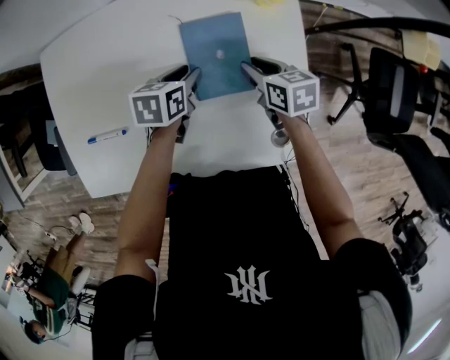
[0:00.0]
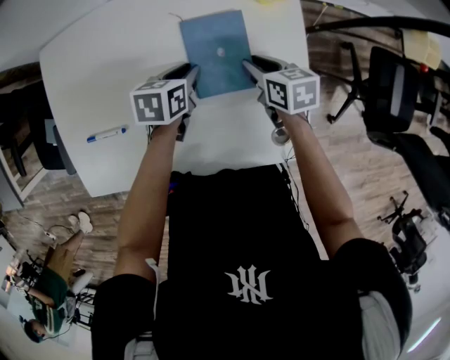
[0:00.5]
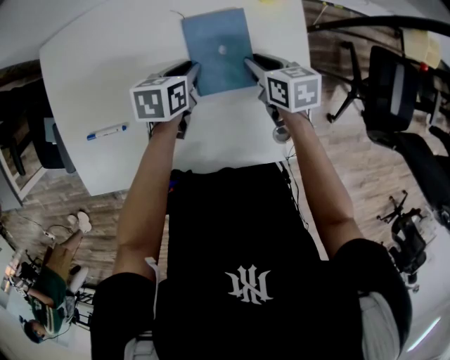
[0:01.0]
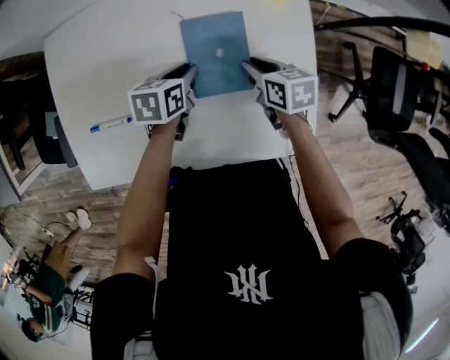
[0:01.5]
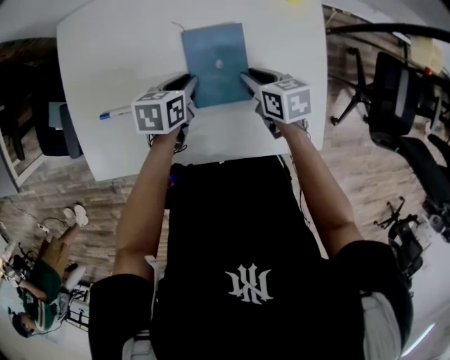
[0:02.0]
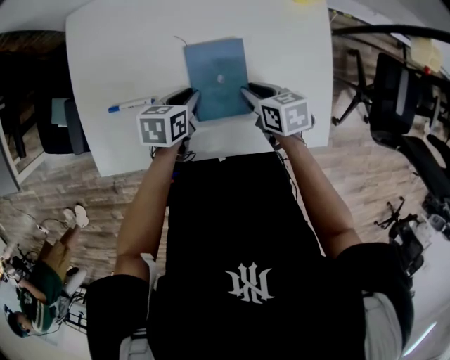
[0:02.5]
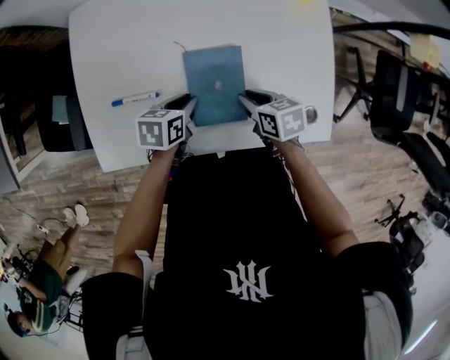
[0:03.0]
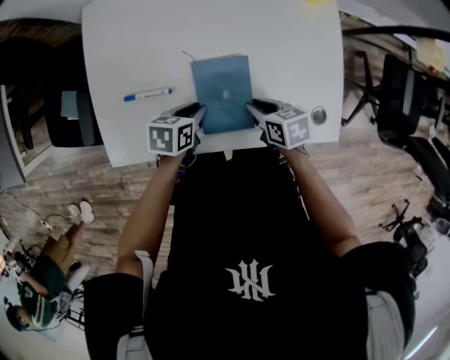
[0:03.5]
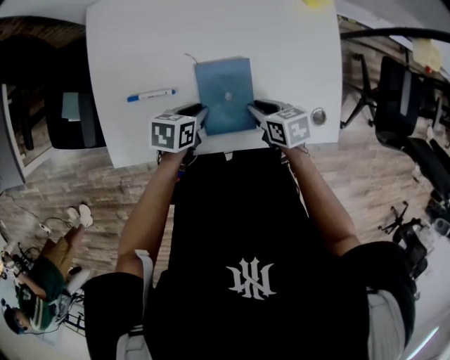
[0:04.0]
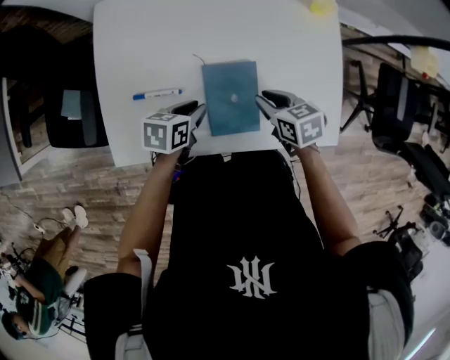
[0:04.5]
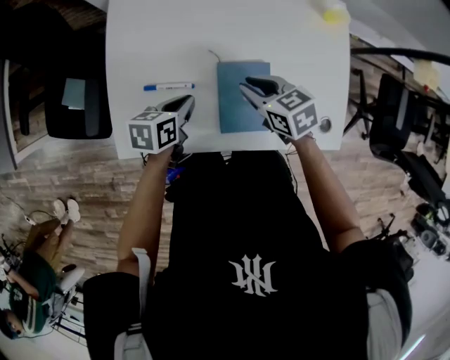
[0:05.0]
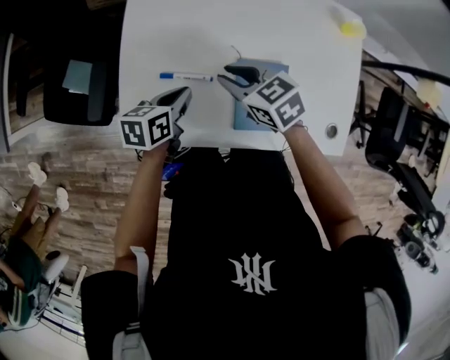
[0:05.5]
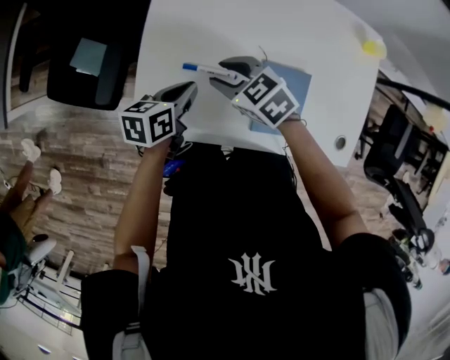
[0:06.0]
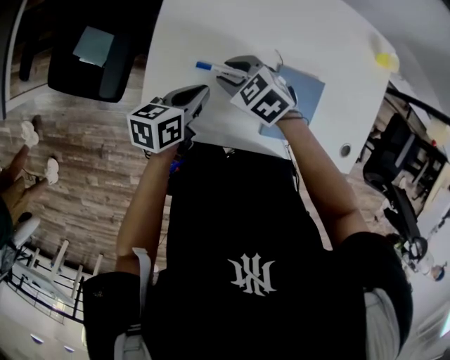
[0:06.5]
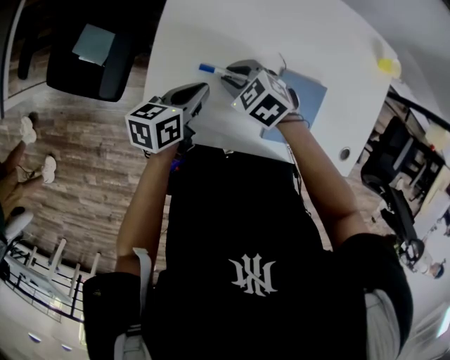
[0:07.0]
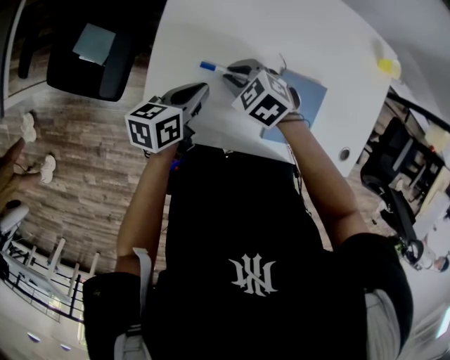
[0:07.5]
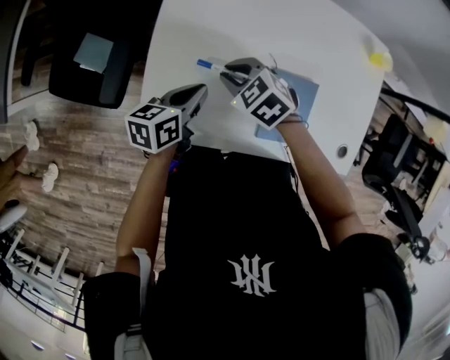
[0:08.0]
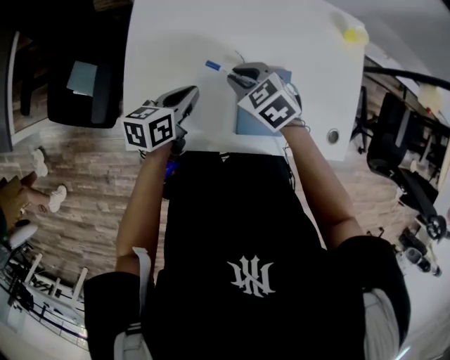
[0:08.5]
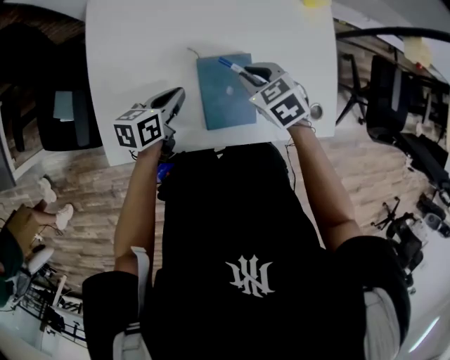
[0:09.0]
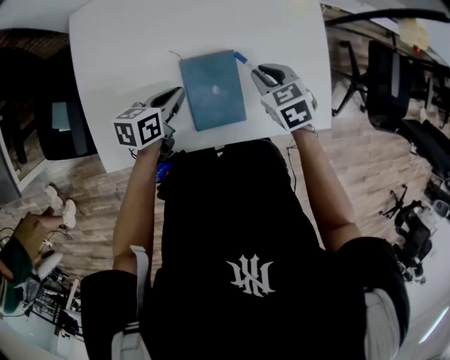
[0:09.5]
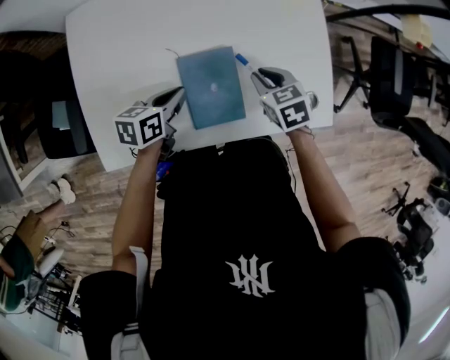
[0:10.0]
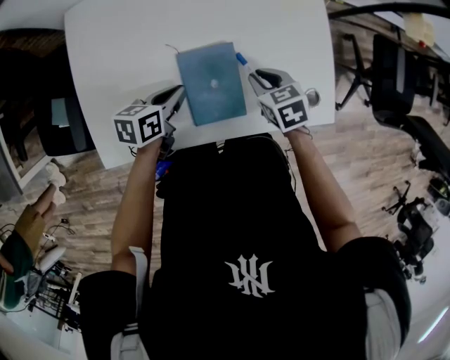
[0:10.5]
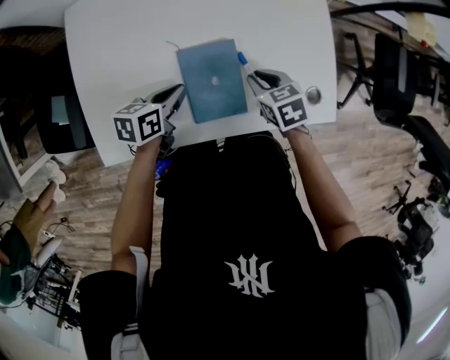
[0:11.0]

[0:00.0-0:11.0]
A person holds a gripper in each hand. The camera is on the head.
0:00.0 to 0:02.0: The grippers both shift to the left and backward by roughly 10 cm.
0:02.0 to 0:03.5: Both grippers travel together backward and to the left, approximately 15 cm.
0:03.5 to 0:05.5: The left gripper goes roughly 15 cm to the left and upward, and rotates some 20 degrees; the right gripper shifts about 25 cm to the left, upward and forward, and turns by roughly 40 degrees.
0:05.5 to 0:07.5: The left gripper heads to the left, covering roughly 5 cm; the right gripper heads to the left and downward, covering roughly 15 cm, and turns by approximately 30 degrees.
0:07.5 to 0:09.0: The left gripper moves to the right, approximately 15 cm, while the right gripper moves to the right, about 25 cm, and rotates some 30 degrees.
0:09.0 to 0:11.0: The right gripper is displaced to the right and downward by approximately 10 cm, and turns by about 20 degrees. Meanwhile the left gripper changes place by some 5 cm.

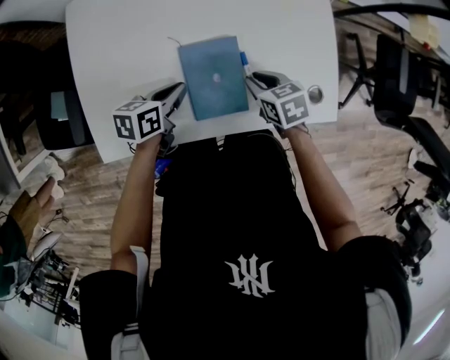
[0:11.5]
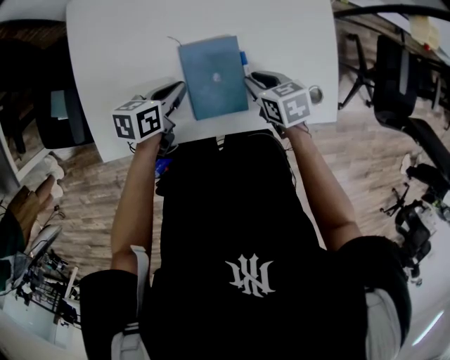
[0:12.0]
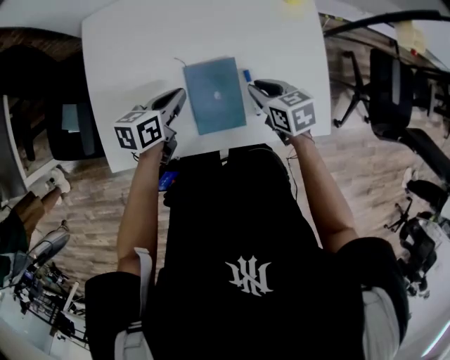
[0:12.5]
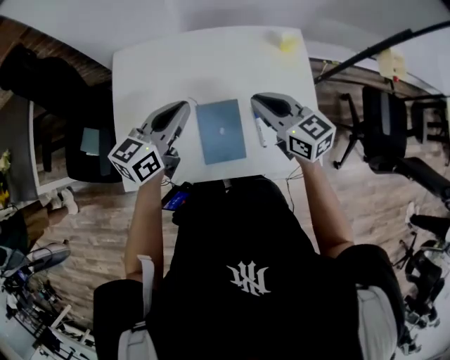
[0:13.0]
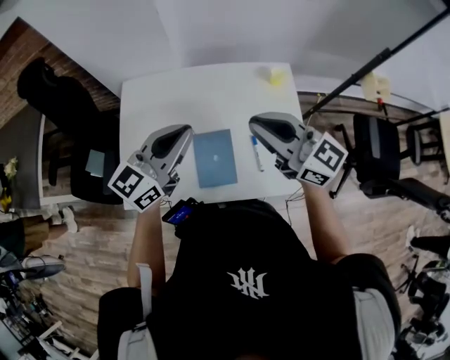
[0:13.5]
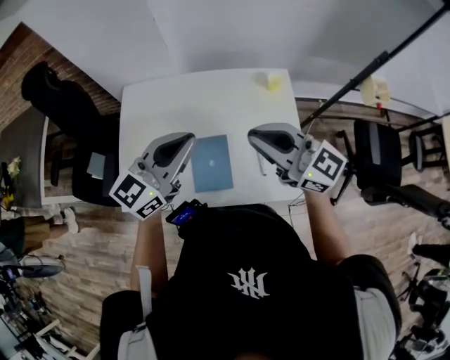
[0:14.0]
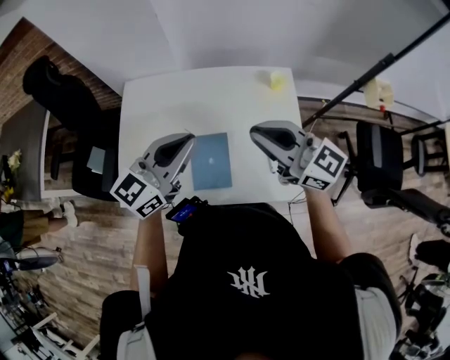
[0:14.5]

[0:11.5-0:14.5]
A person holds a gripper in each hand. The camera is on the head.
0:11.5 to 0:13.0: Both grippers travel together upward, some 25 cm. The right gripper tilts its fingers approximately 40 degrees upward. The left gripper swivels about 40 degrees.
0:13.0 to 0:14.5: The left gripper is displaced upward, to the right and backward by about 15 cm. The right gripper travels upward by some 15 cm, and rotates about 30 degrees.

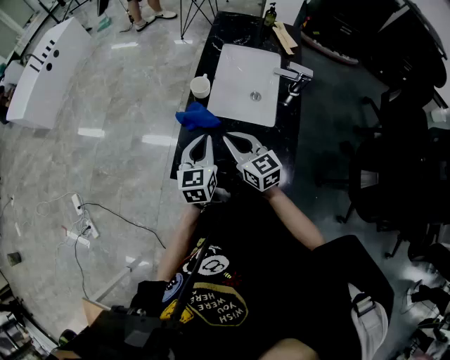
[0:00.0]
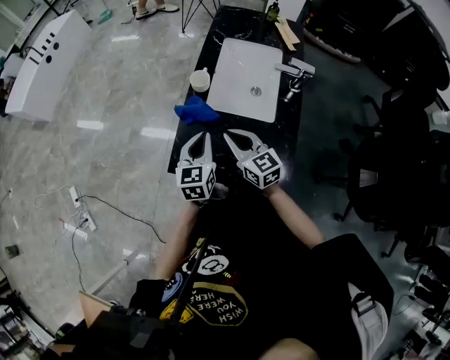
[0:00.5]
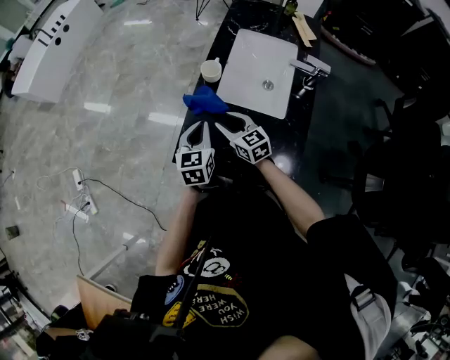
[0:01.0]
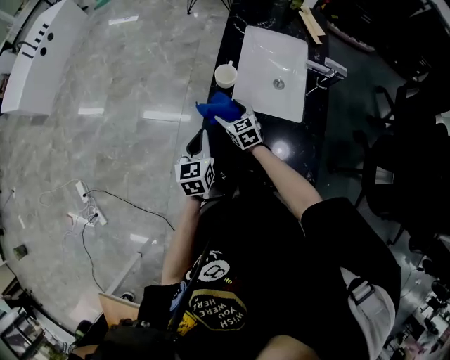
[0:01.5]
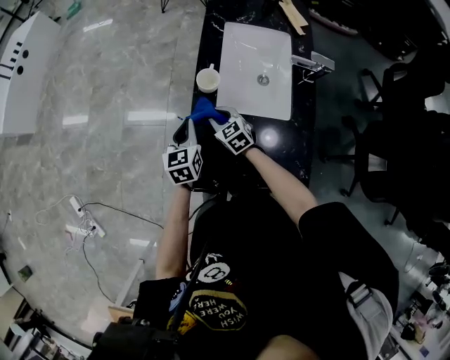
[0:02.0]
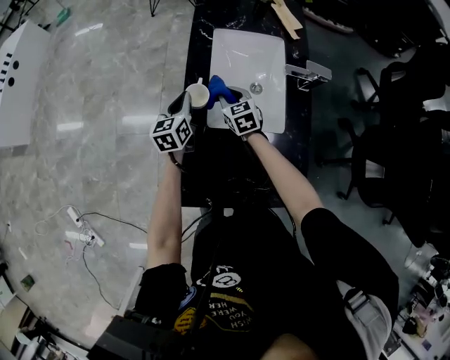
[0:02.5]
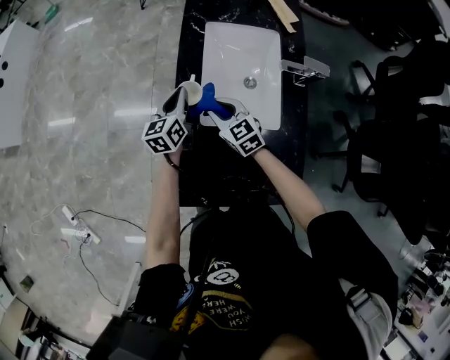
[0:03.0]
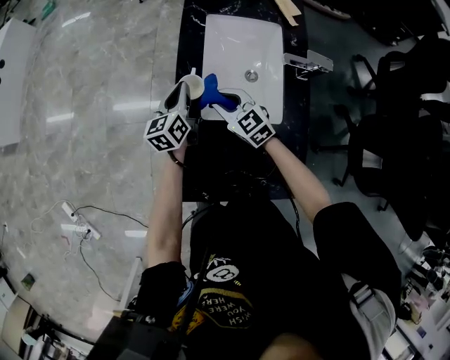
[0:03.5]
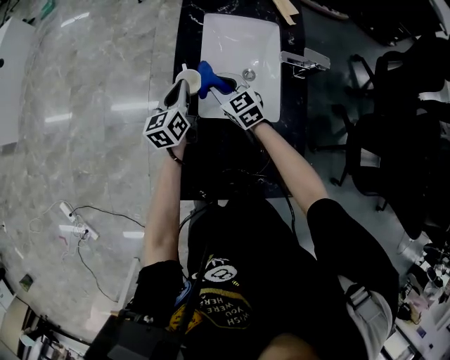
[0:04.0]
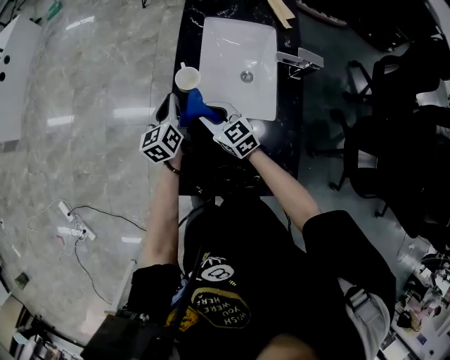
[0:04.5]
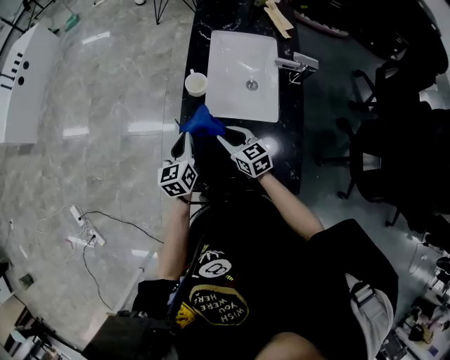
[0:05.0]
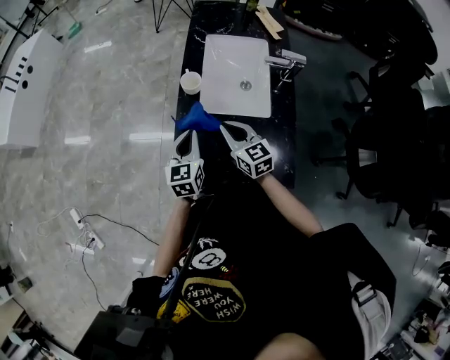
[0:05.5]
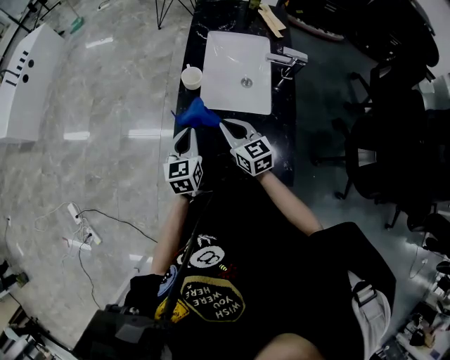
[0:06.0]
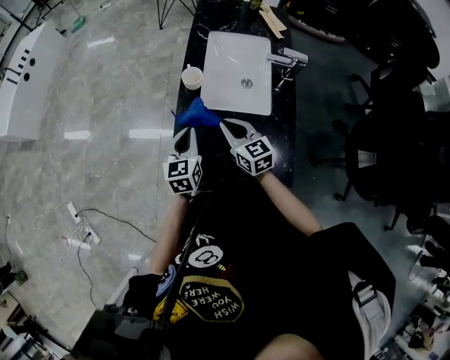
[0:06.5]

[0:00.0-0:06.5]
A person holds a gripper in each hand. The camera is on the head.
0:00.0 to 0:02.0: The right gripper moves downward and forward, approximately 25 cm, swivels about 30 degrees, and opens and closes again; the left gripper is displaced forward, downward and to the left by roughly 20 cm.
0:02.0 to 0:04.5: The left gripper is displaced forward by approximately 10 cm, and rotates some 20 degrees; the right gripper goes forward and backward, about 10 cm each way, reversing 3 times.
0:04.5 to 0:06.5: The left gripper heads backward, covering some 20 cm, and rotates some 20 degrees, while the right gripper is displaced backward and upward by roughly 15 cm.

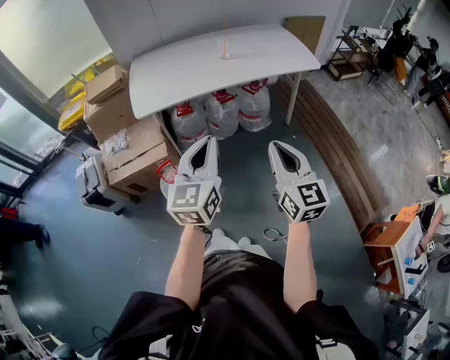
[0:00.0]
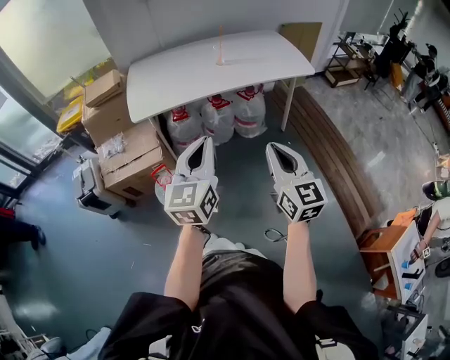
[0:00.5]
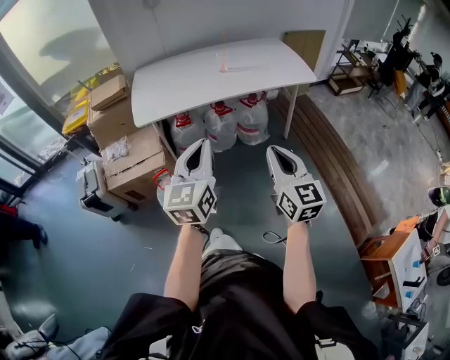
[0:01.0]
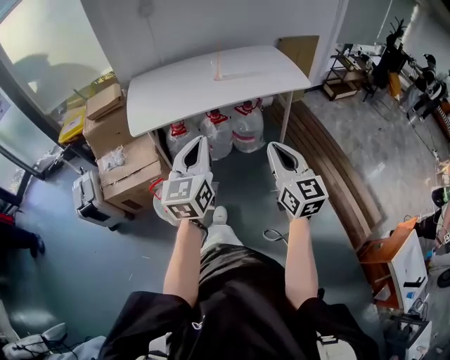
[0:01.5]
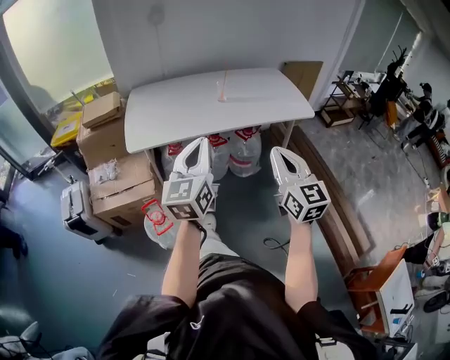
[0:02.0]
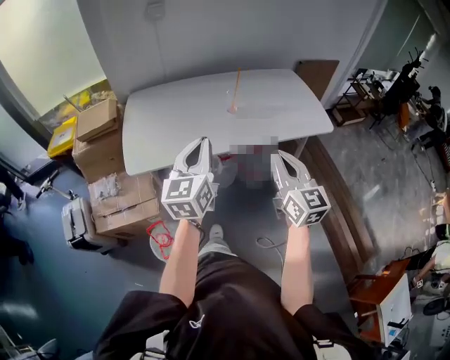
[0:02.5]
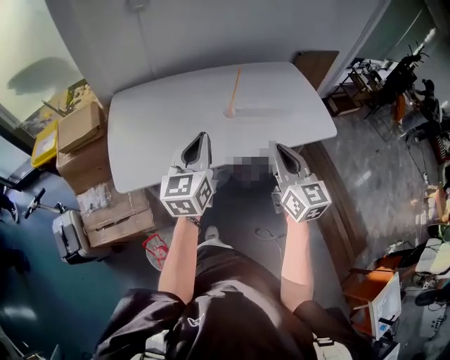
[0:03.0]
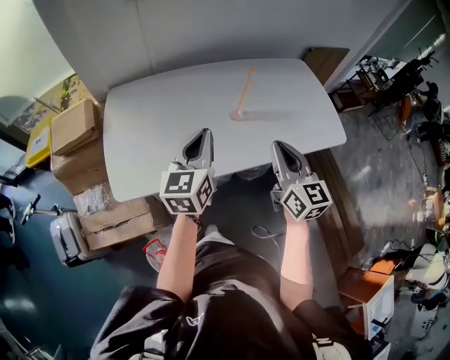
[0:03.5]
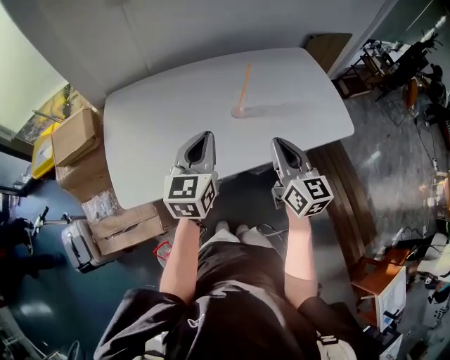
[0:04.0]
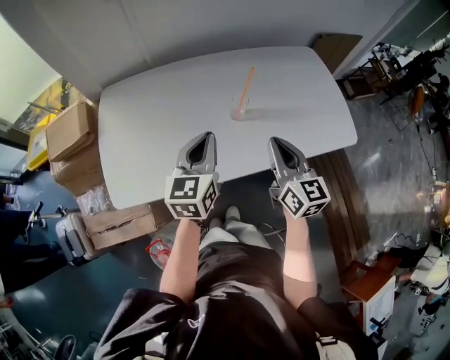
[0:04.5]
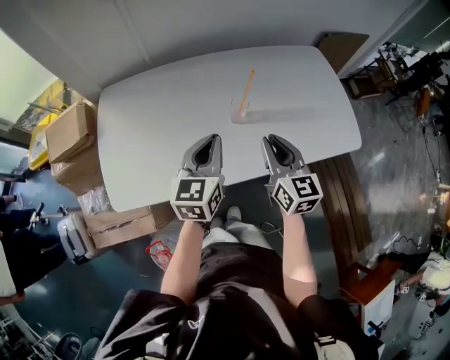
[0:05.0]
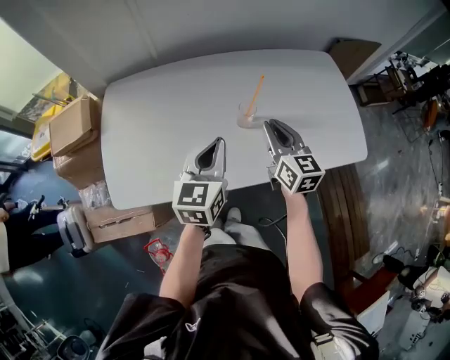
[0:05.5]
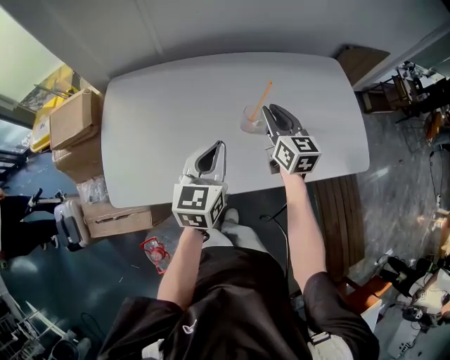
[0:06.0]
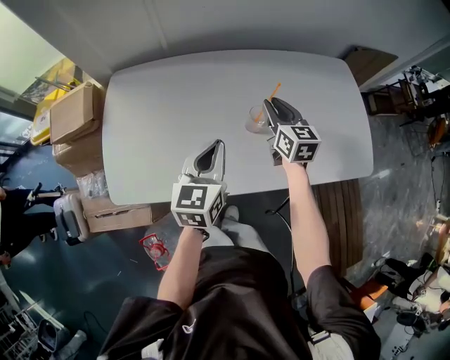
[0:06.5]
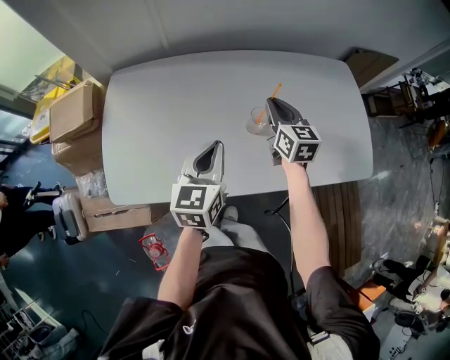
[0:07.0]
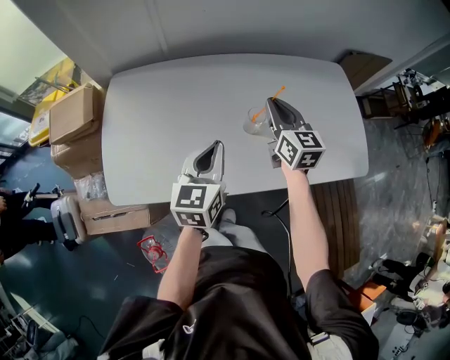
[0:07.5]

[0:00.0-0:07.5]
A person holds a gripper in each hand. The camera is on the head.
0:00.0 to 0:02.0: Both grippers travel together forward, approximately 10 cm.
0:02.0 to 0:04.0: Both grippers are carried forward, roughly 40 cm.
0:04.0 to 0:05.5: The left gripper shifts approximately 5 cm forward. Meanwhile the right gripper goes roughly 15 cm forward.
0:05.5 to 0:07.5: The right gripper heads forward, covering approximately 10 cm.
